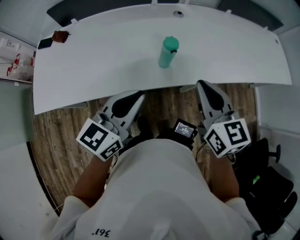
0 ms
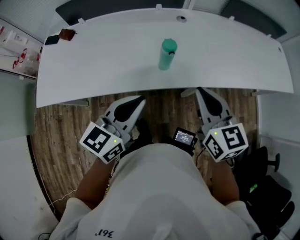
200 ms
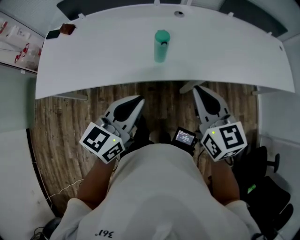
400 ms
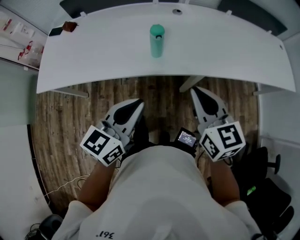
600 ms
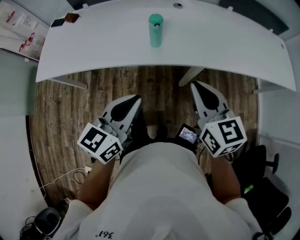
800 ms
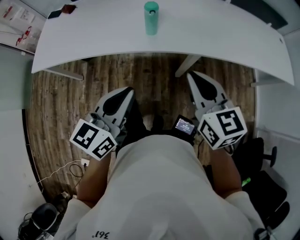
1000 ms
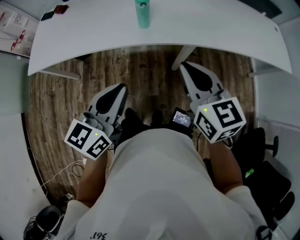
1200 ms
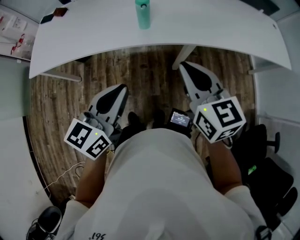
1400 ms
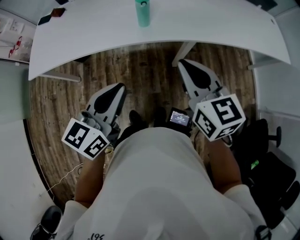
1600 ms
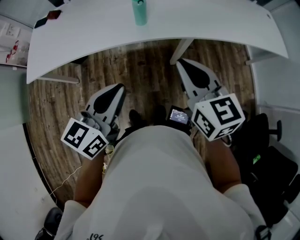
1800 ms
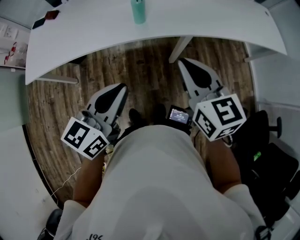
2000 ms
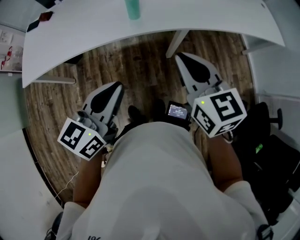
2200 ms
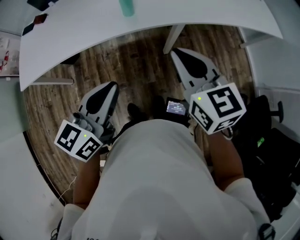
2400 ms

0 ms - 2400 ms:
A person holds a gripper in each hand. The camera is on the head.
0 ms - 1200 ms: Both grippers travel together backward and to the right, roughly 20 cm.
1200 ms - 2400 ms: There are only small adjustments of the grippers.

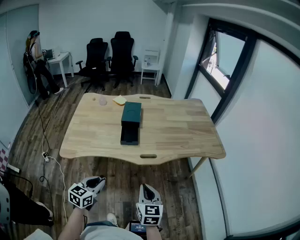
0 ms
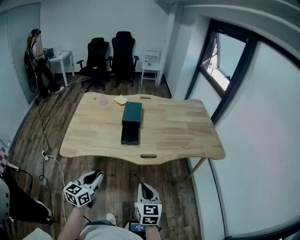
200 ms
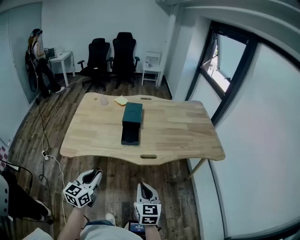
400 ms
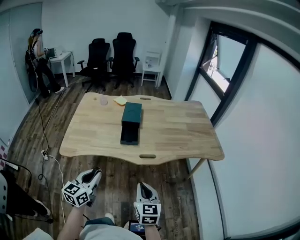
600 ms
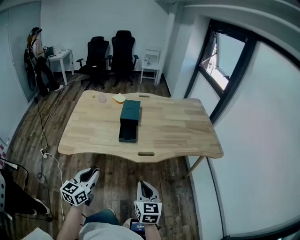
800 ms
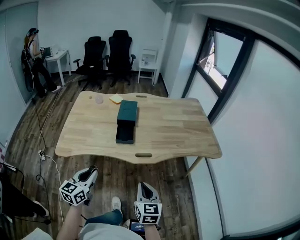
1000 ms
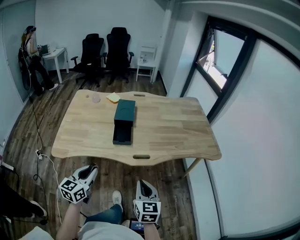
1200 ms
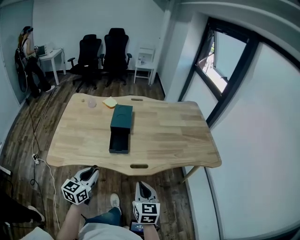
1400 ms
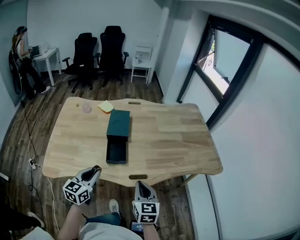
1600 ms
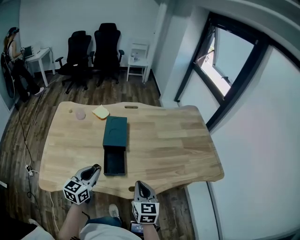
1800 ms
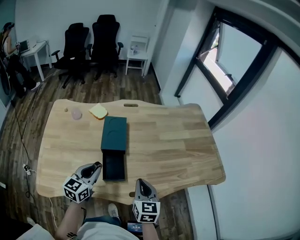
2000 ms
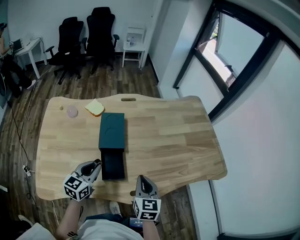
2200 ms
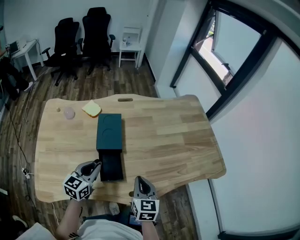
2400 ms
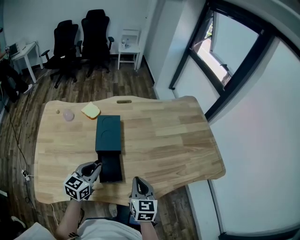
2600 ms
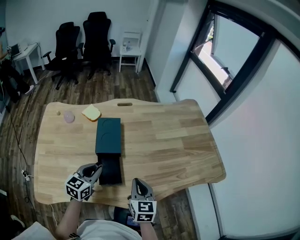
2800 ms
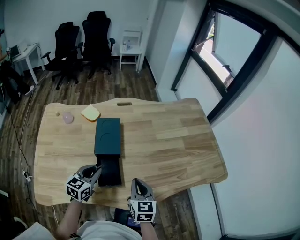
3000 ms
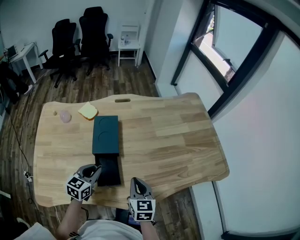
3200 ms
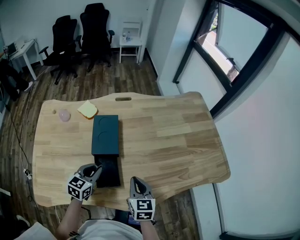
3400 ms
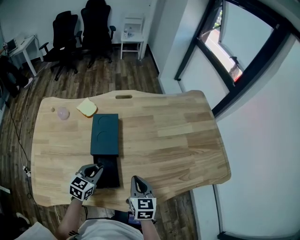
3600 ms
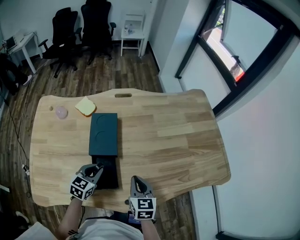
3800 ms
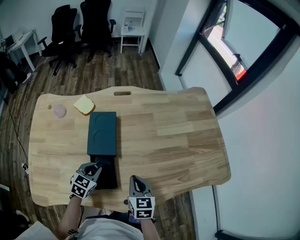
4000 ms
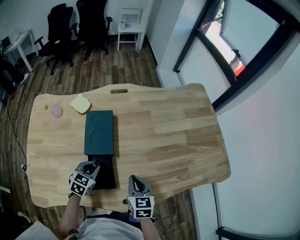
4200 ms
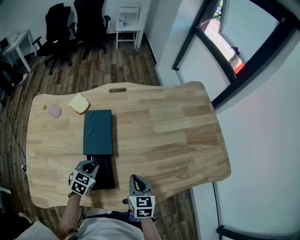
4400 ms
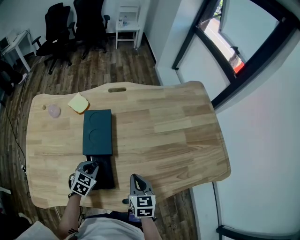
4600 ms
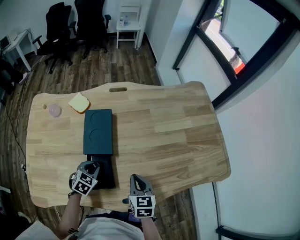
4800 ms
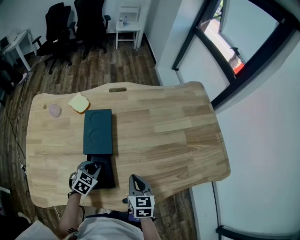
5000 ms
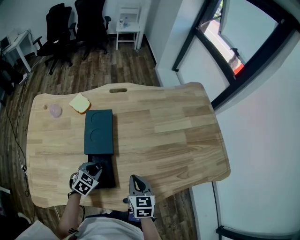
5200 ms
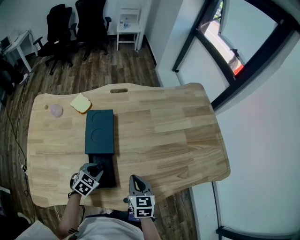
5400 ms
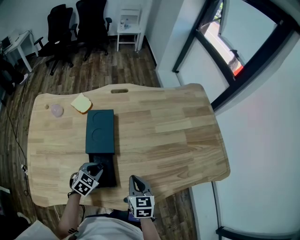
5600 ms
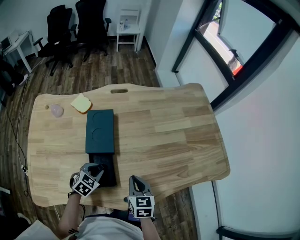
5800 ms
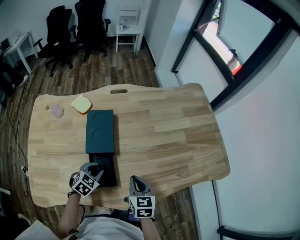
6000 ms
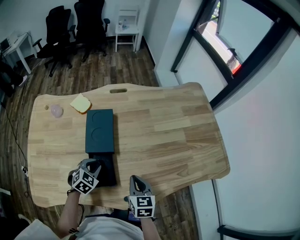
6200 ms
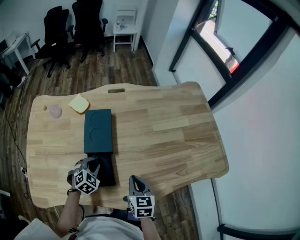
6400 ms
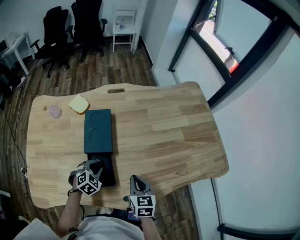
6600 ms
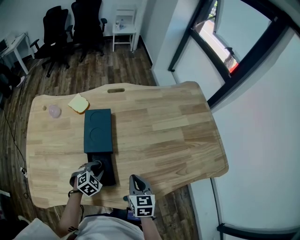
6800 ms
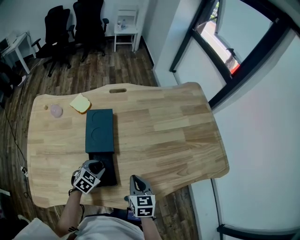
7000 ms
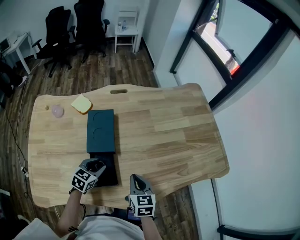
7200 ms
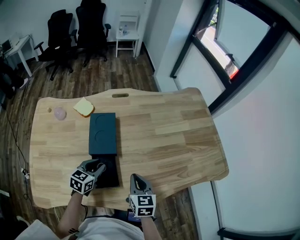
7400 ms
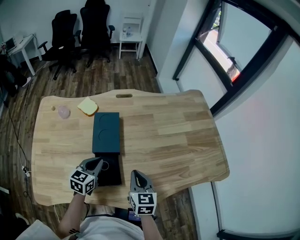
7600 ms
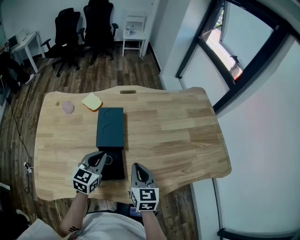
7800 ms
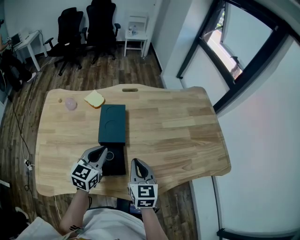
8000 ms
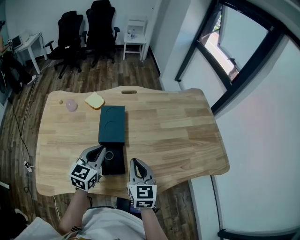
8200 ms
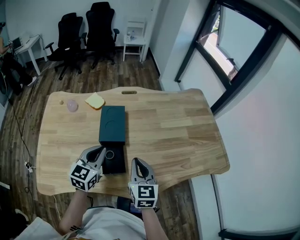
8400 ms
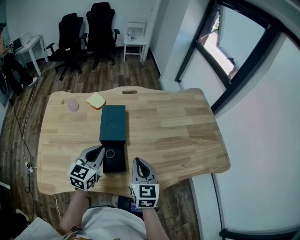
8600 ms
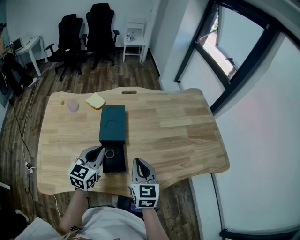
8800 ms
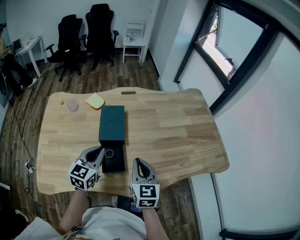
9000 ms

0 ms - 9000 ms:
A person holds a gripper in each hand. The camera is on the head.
0 ms - 1600 ms: Both grippers travel together forward, some 20 cm.
1600 ms - 3000 ms: Both grippers move forward, approximately 20 cm.
3000 ms - 4400 ms: The grippers both shift downward and forward by roughly 10 cm. The left gripper rotates some 20 degrees.
4400 ms - 6000 ms: The grippers make only small movements.
6000 ms - 7600 ms: The right gripper is displaced upward by about 5 cm; the left gripper moves upward, roughly 10 cm, turns by roughly 30 degrees, and closes up.
7600 ms - 9000 ms: Both grippers travel together upward, roughly 10 cm.

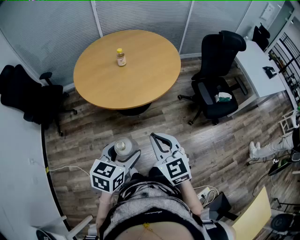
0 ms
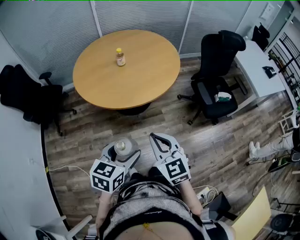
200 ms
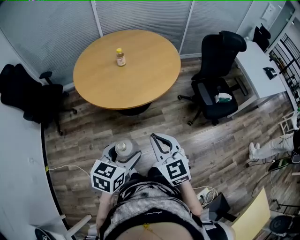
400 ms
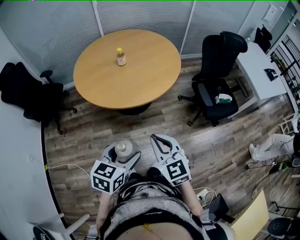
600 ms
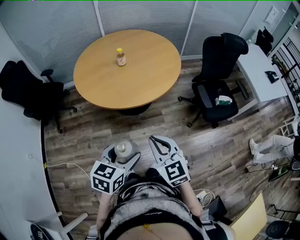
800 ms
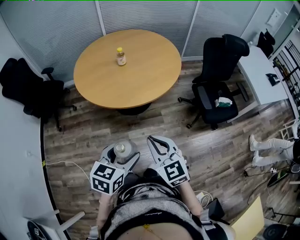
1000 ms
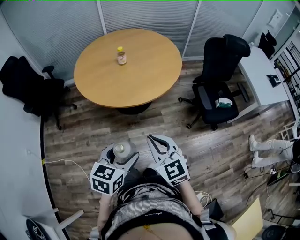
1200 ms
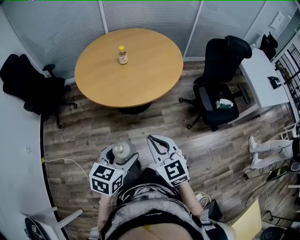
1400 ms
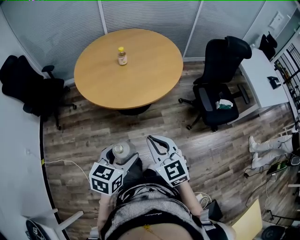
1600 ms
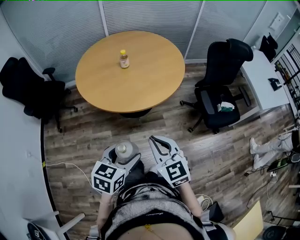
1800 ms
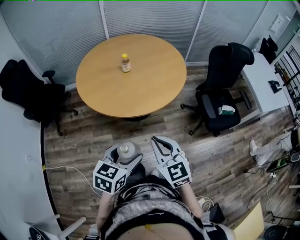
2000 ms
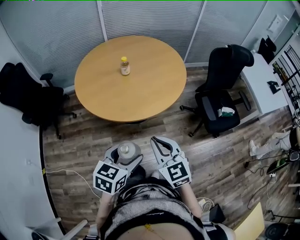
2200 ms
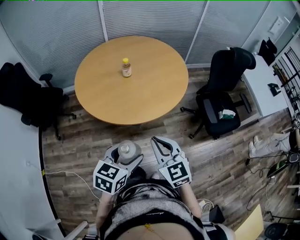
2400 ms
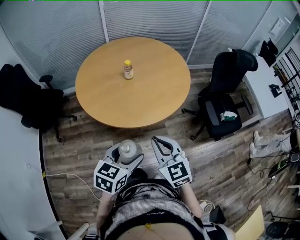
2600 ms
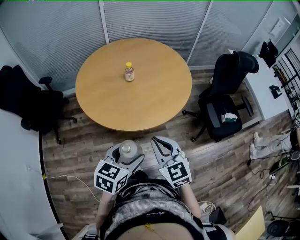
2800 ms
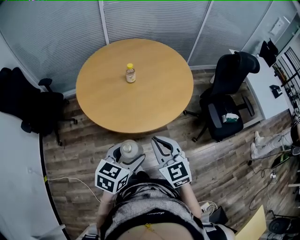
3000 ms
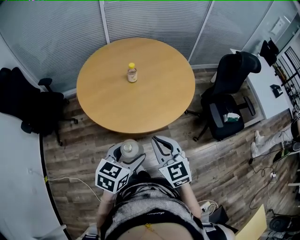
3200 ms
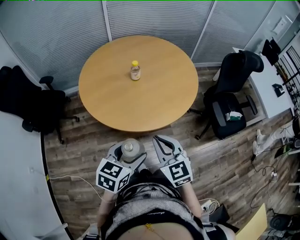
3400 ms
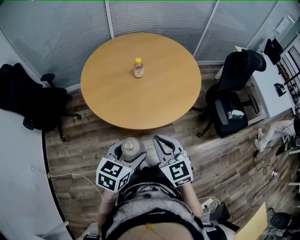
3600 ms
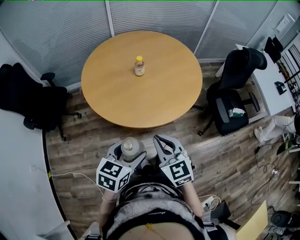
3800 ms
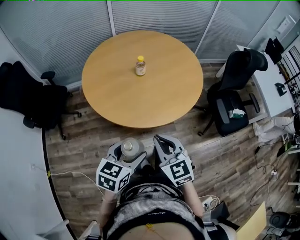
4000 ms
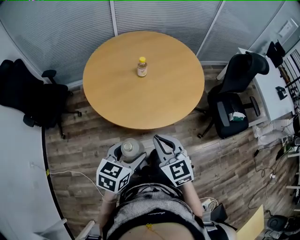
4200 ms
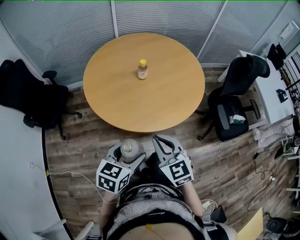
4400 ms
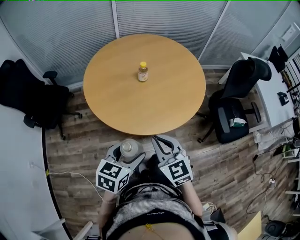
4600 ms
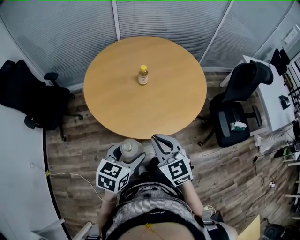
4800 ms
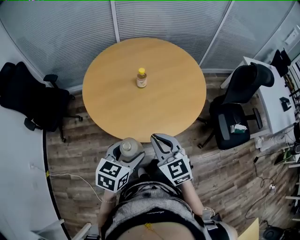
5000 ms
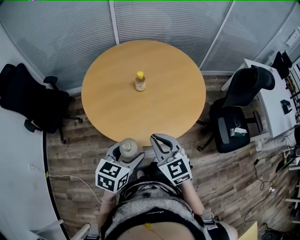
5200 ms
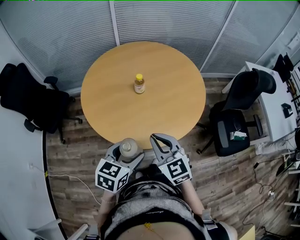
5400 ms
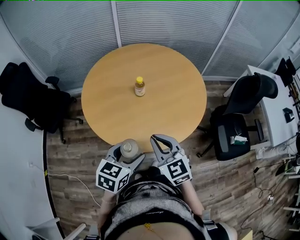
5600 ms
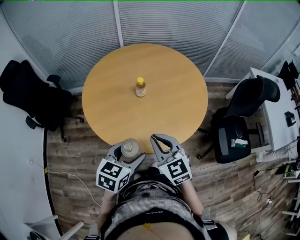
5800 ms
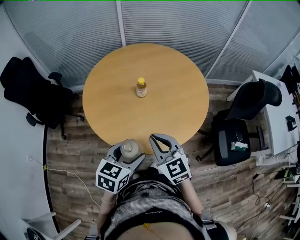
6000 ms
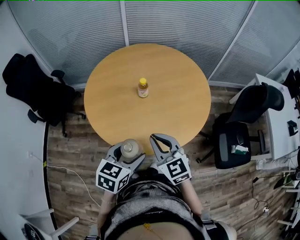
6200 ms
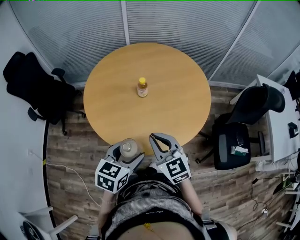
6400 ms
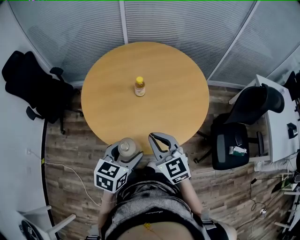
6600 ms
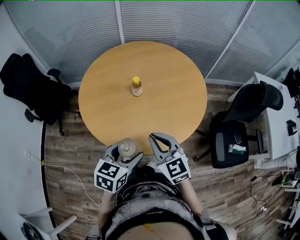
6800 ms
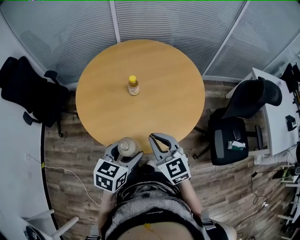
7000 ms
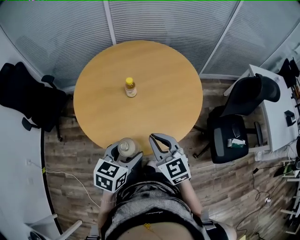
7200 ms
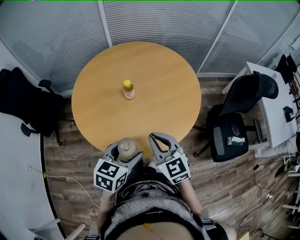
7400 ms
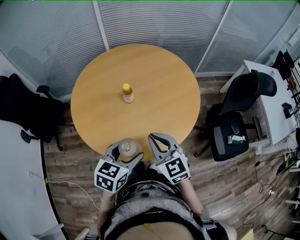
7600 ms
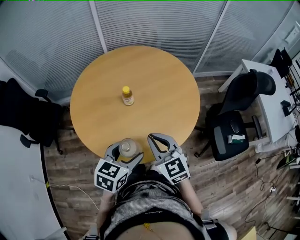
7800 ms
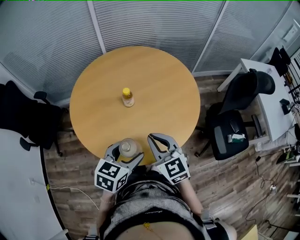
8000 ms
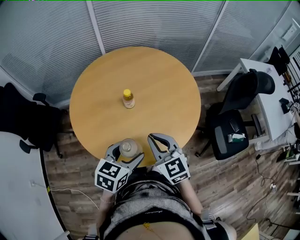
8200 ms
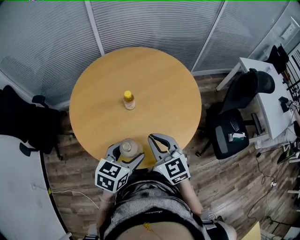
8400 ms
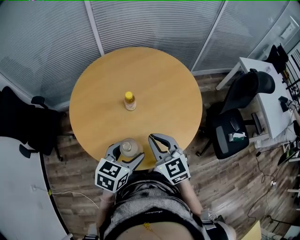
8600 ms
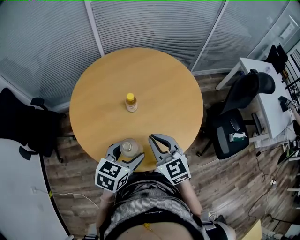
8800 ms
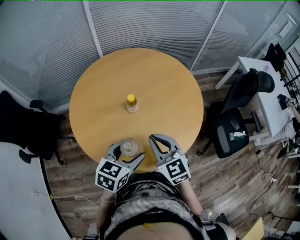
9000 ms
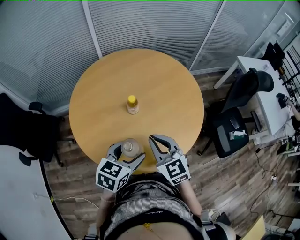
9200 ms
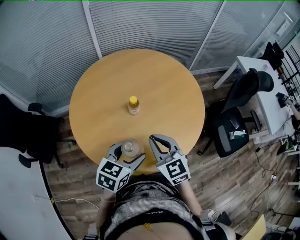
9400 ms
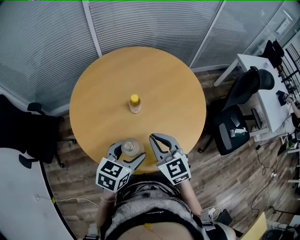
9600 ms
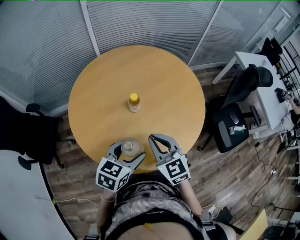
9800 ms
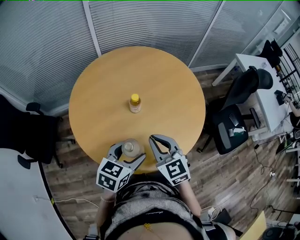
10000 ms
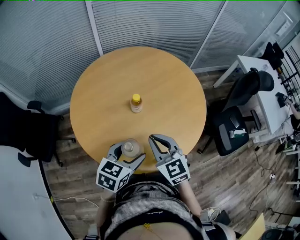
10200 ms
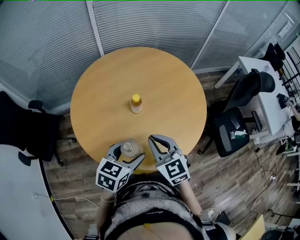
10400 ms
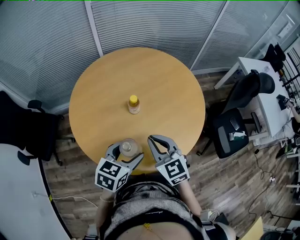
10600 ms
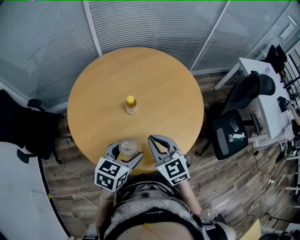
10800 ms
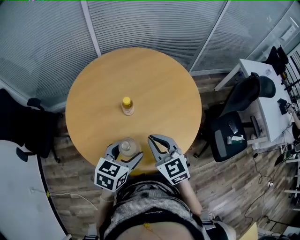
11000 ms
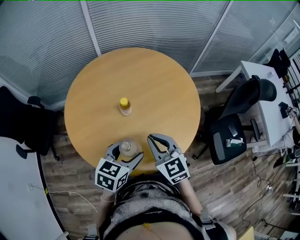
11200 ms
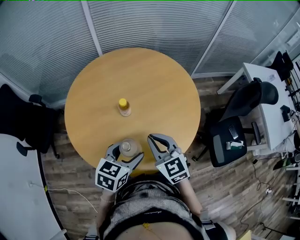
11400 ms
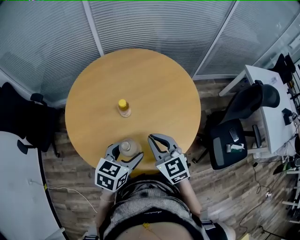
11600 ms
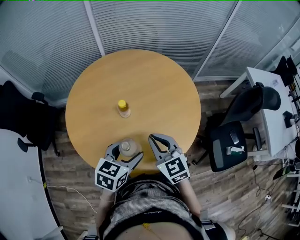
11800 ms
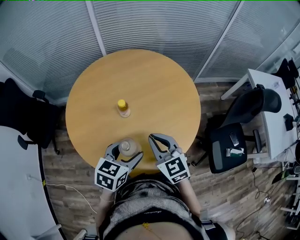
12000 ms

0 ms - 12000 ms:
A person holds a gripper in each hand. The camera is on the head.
0 ms - 1600 ms: The grippers stay close to where they were, moving slightly.
1600 ms - 3000 ms: Both grippers travel together forward and to the left, some 20 cm.
3000 ms - 4400 ms: Both grippers travel together to the left, approximately 5 cm.
4400 ms - 6000 ms: The two grippers go some 15 cm forward and to the right.
6000 ms - 7600 ms: The right gripper shifts by about 5 cm; the left gripper goes approximately 5 cm forward.
7600 ms - 9000 ms: The left gripper travels forward and to the left by about 10 cm; the right gripper heads to the left and forward, covering roughly 10 cm.
9000 ms - 10400 ms: The grippers make only small movements.
10400 ms - 12000 ms: The right gripper is displaced to the right and forward by some 15 cm; the left gripper moves to the right, some 10 cm.
